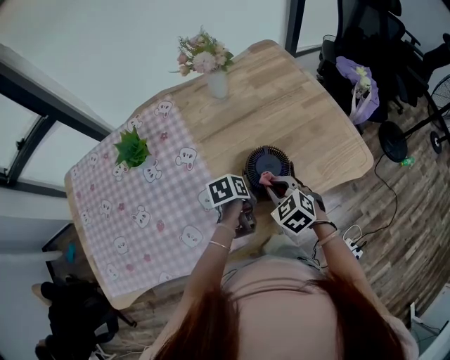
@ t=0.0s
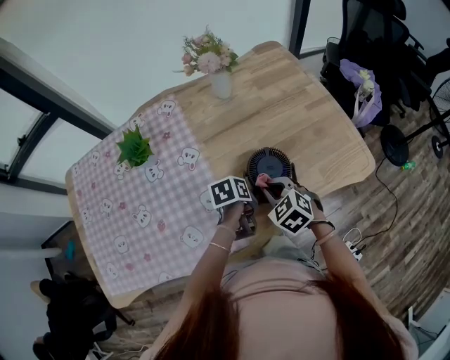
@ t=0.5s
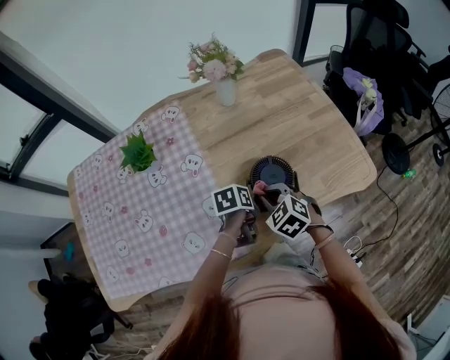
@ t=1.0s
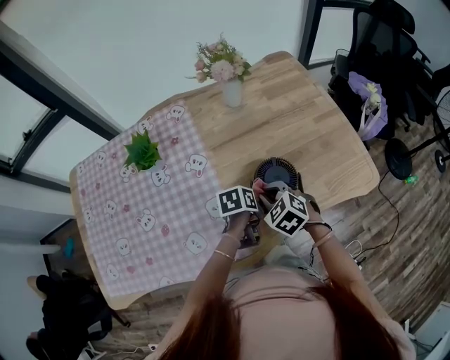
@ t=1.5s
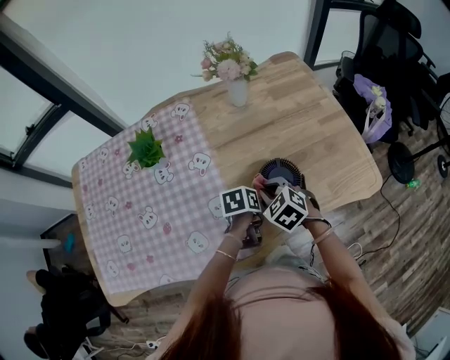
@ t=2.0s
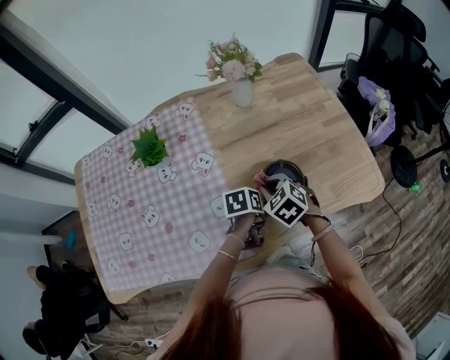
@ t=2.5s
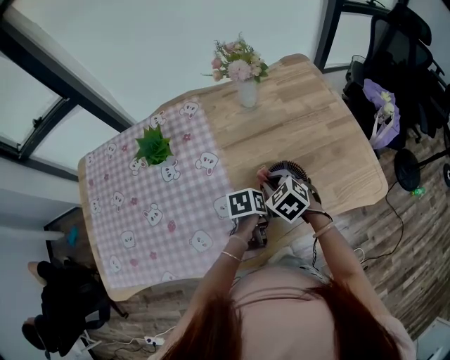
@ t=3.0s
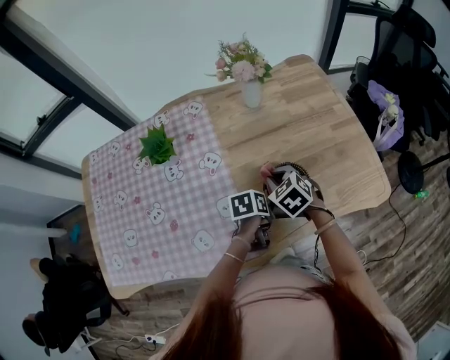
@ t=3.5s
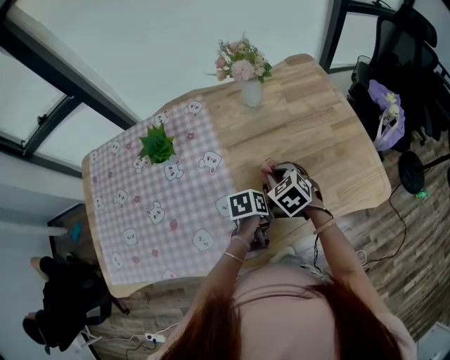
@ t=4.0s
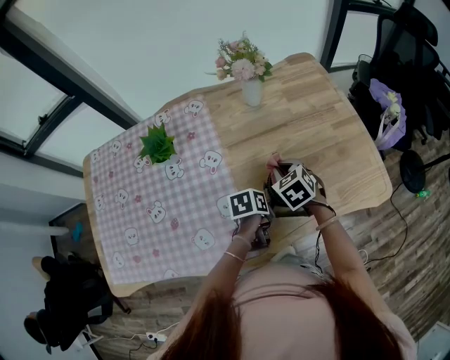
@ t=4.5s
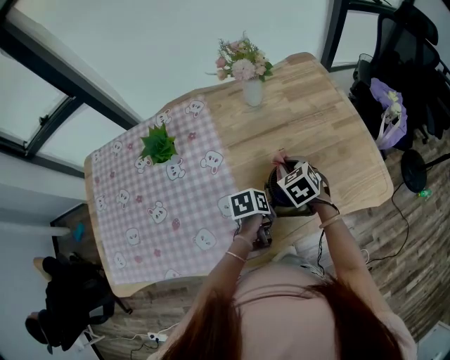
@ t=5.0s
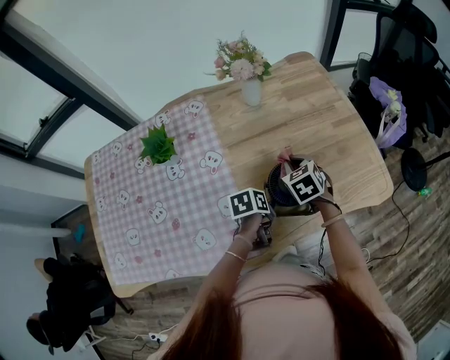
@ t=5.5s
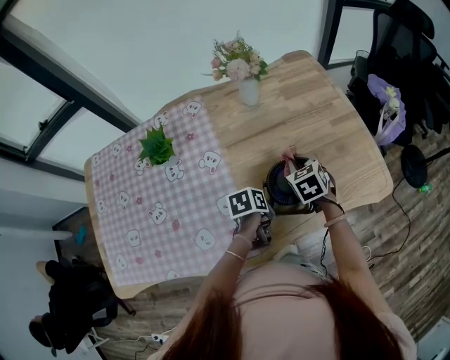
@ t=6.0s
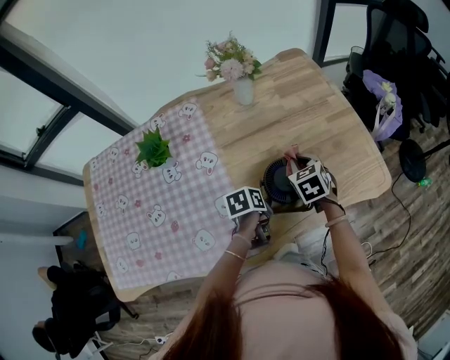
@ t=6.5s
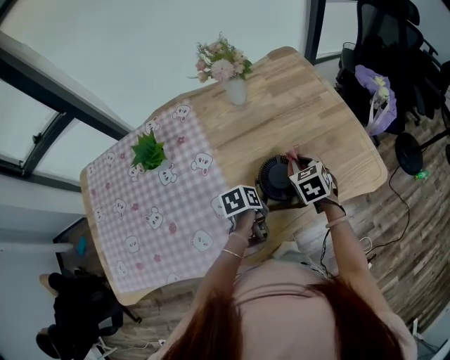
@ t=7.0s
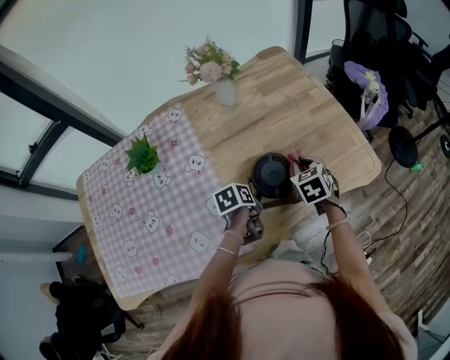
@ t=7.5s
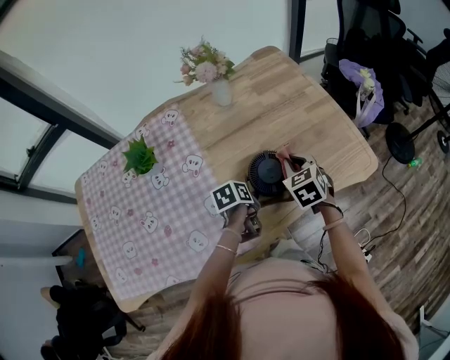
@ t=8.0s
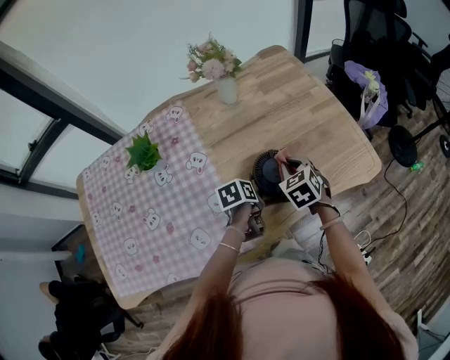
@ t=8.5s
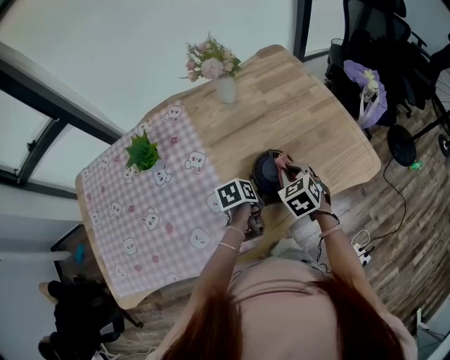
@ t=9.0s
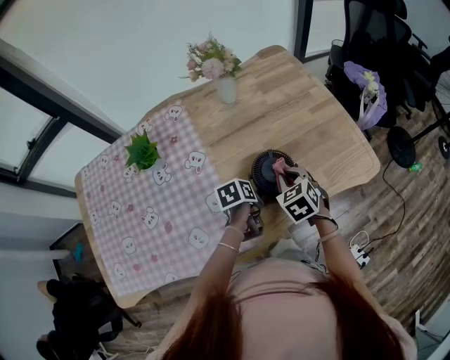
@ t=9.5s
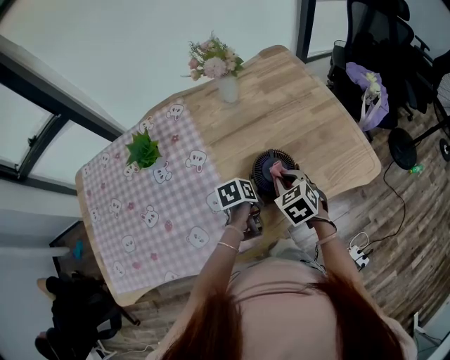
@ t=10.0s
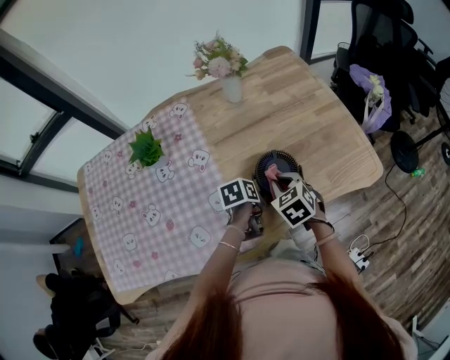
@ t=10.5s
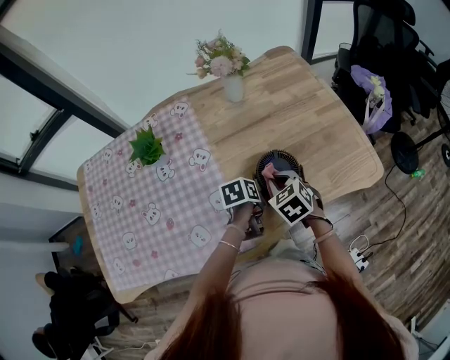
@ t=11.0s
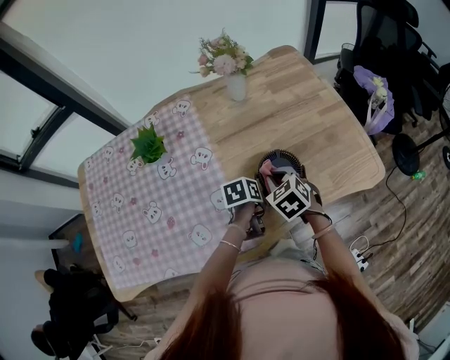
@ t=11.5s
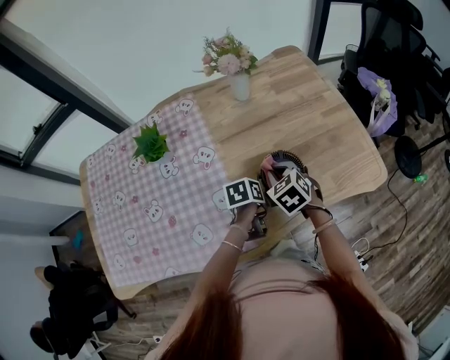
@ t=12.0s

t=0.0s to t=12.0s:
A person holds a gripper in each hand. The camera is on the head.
t=0.0s to t=2.0s: The right gripper goes roughly 5 cm to the left.
t=2.0s to t=4.0s: The right gripper shifts about 5 cm forward.
t=4.0s to t=6.0s: The right gripper is displaced to the right by approximately 5 cm.
t=6.0s to t=8.0s: The right gripper heads to the right, covering approximately 5 cm.
t=8.0s to t=10.0s: The right gripper travels backward by about 5 cm.
t=10.0s to t=12.0s: The right gripper is displaced to the left by about 5 cm.

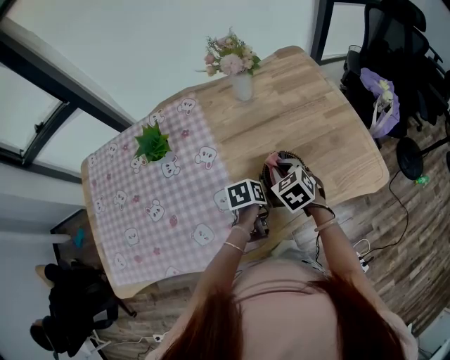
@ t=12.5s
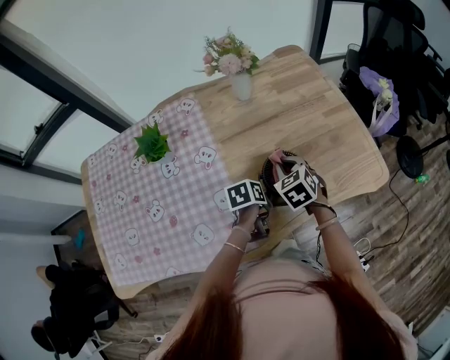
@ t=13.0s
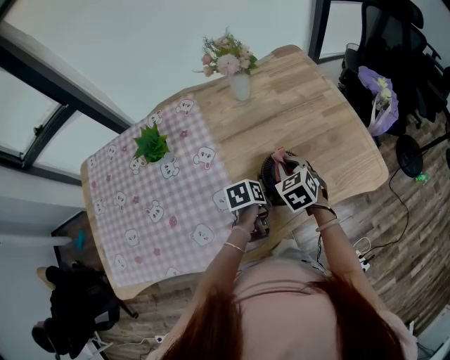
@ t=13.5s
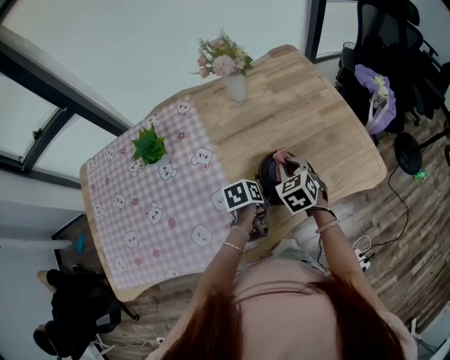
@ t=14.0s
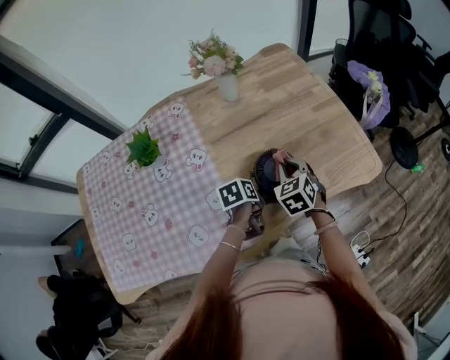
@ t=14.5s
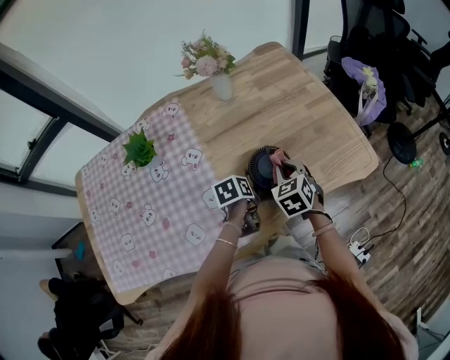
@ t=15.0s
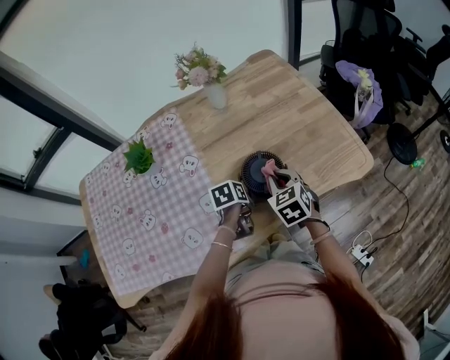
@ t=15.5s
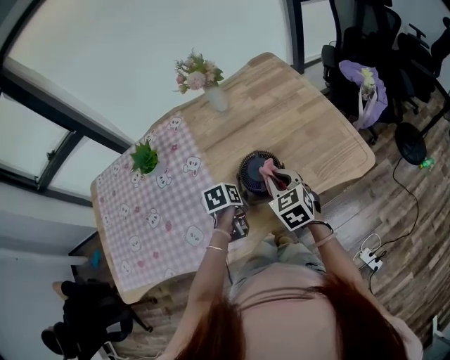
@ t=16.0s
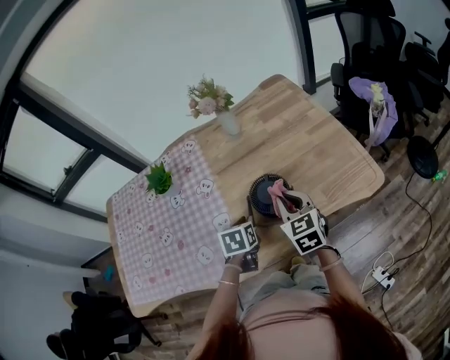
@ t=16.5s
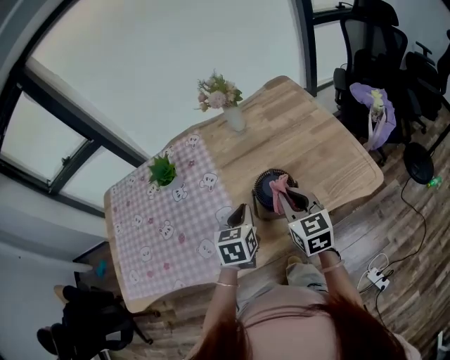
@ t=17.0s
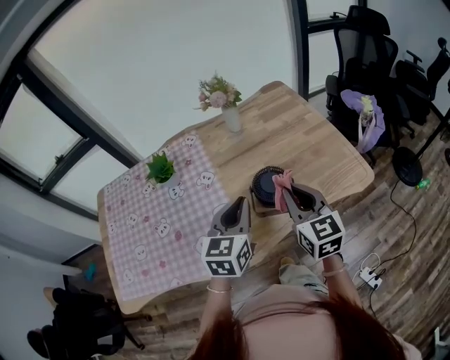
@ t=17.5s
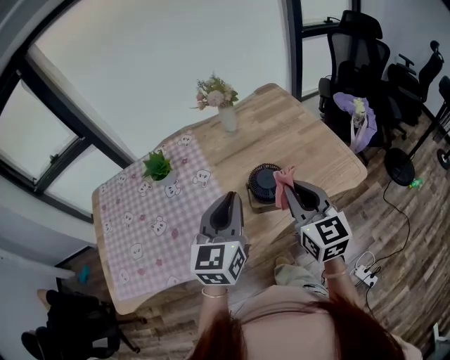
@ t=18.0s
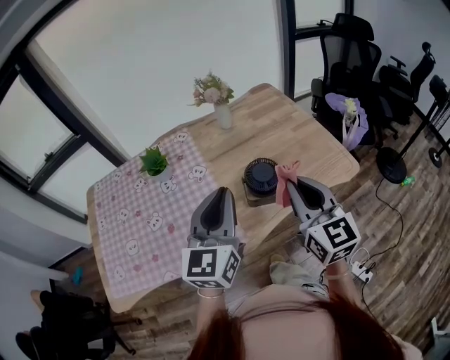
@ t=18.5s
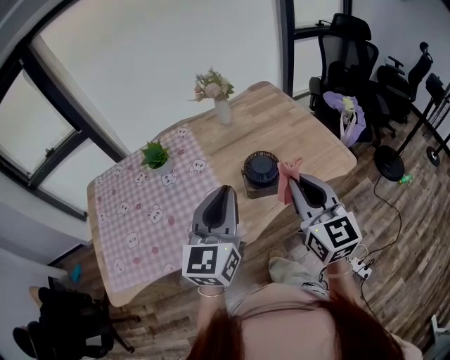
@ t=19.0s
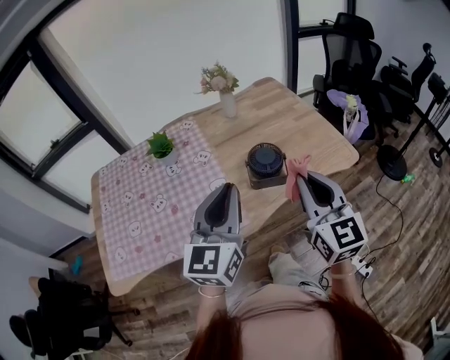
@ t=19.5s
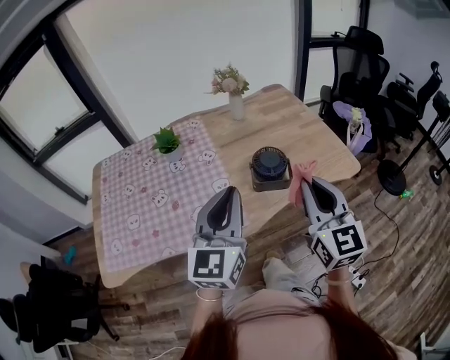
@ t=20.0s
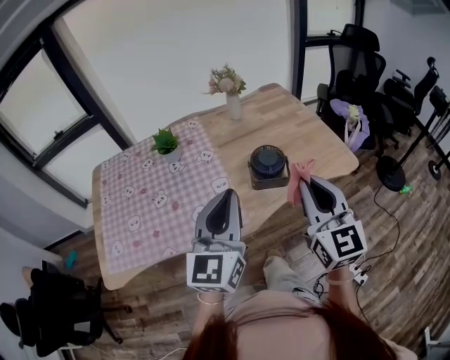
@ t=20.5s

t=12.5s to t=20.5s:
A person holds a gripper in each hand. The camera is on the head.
t=12.5s to t=14.5s: The right gripper goes about 5 cm to the right.
t=14.5s to t=16.5s: Both grippers travel together upward, some 5 cm. The left gripper swivels some 30 degrees, while the right gripper rotates some 30 degrees.
t=16.5s to t=18.5s: The right gripper shifts approximately 25 cm upward and backward, and rotates roughly 20 degrees, while the left gripper shifts approximately 30 cm upward, and points its fingers some 50 degrees further upward.
t=18.5s to t=20.5s: Both grippers move backward, roughly 10 cm.

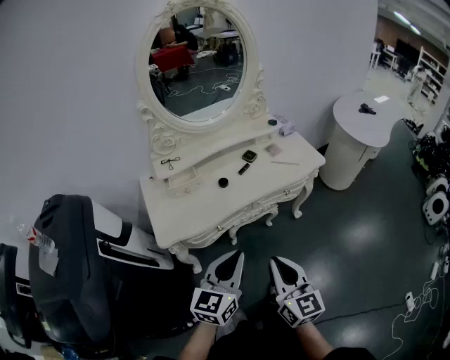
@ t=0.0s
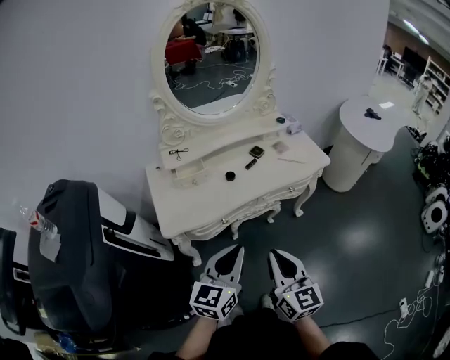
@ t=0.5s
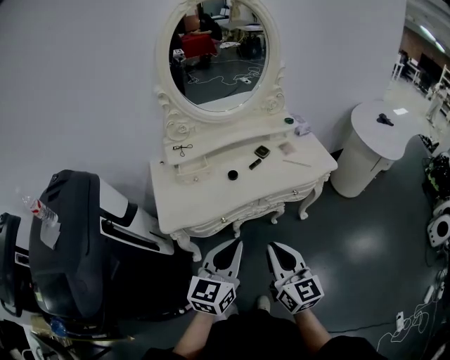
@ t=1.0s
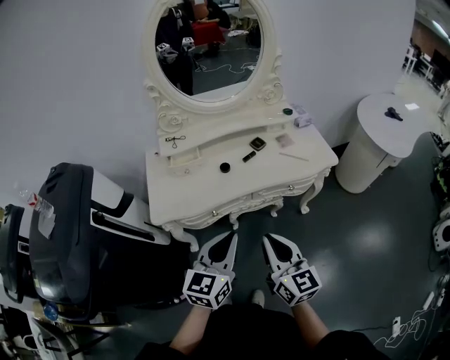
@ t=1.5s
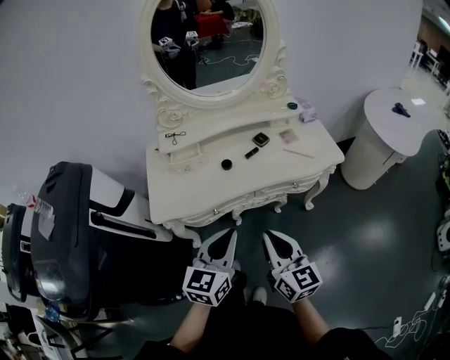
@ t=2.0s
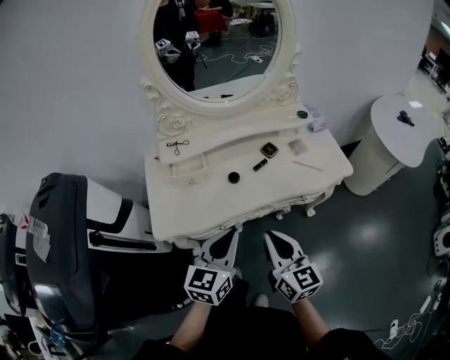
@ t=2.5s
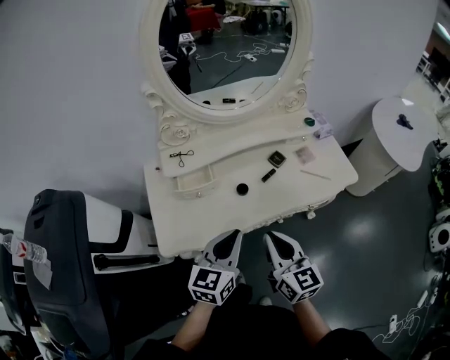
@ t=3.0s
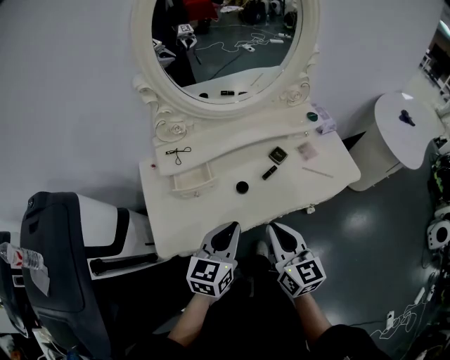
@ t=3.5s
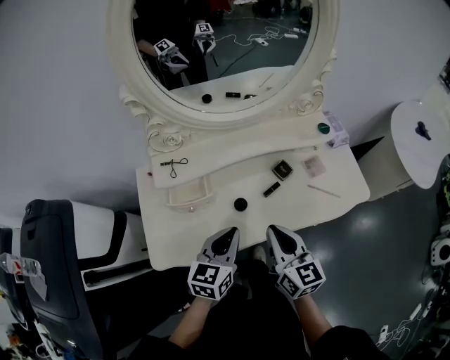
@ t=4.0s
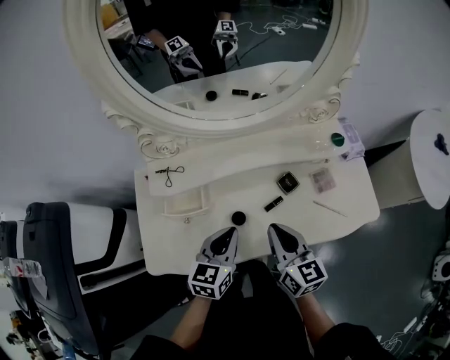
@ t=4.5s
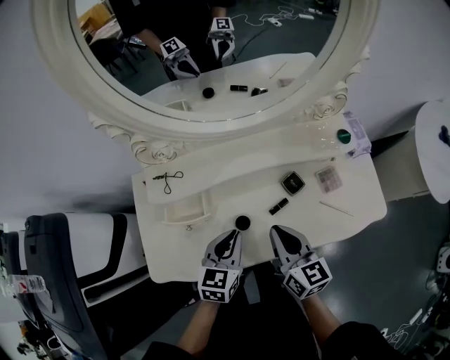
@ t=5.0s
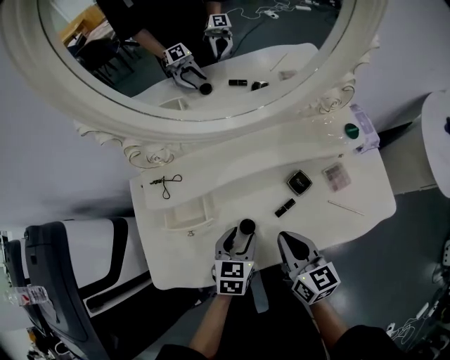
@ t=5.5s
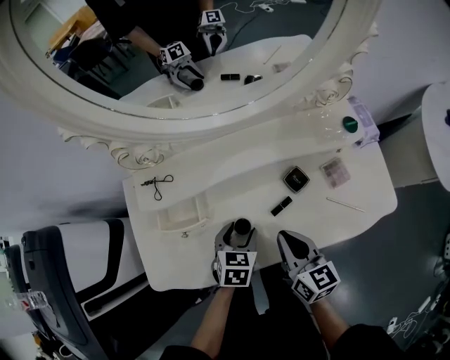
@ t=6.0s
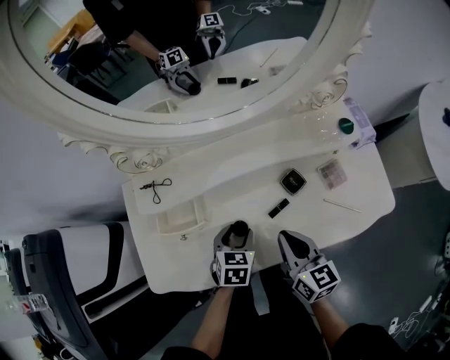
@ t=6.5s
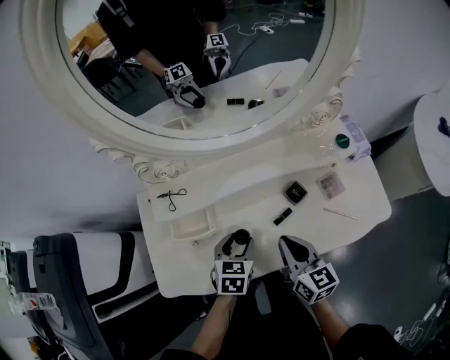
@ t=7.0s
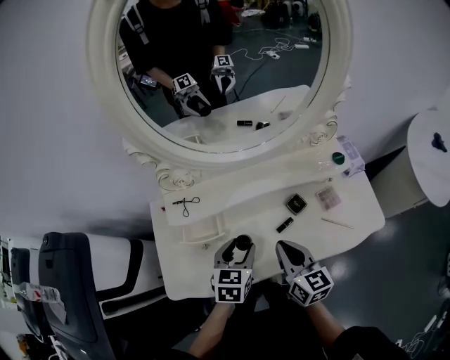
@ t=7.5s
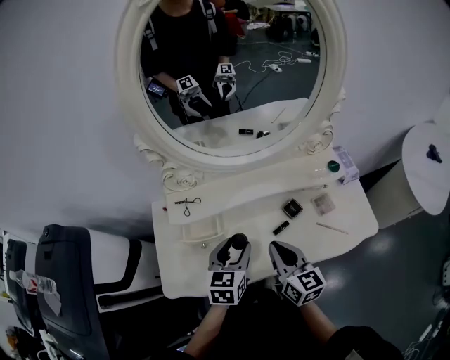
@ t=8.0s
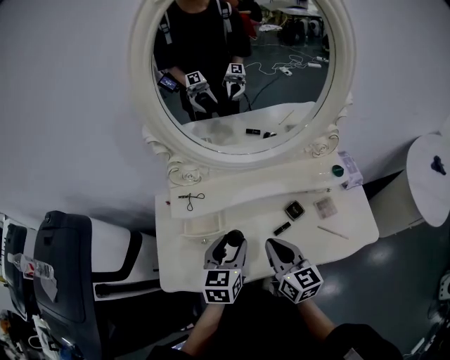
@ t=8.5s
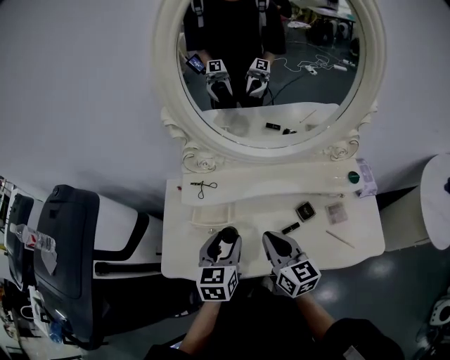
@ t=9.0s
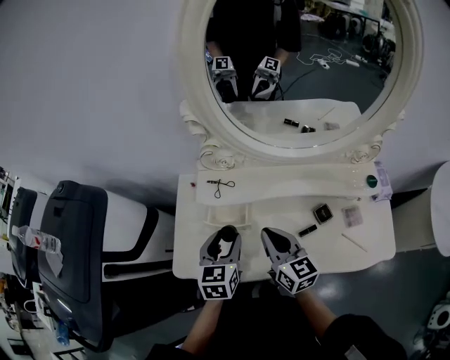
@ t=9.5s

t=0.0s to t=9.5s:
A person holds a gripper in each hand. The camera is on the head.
t=0.0s to t=2.0s: The left gripper heads forward, covering about 5 cm. The right gripper shifts about 10 cm forward and to the right.
t=2.0s to t=4.0s: The two grippers go approximately 25 cm forward.
t=4.0s to t=5.5s: The right gripper shifts roughly 15 cm forward and downward, while the left gripper is displaced downward and forward by about 15 cm, swivels some 20 degrees, and opens up.
t=5.5s to t=7.5s: The right gripper moves upward, about 5 cm; the left gripper shifts roughly 10 cm upward.
t=7.5s to t=9.5s: The right gripper moves to the left and forward, some 15 cm, while the left gripper shifts about 10 cm to the left, and rotates roughly 20 degrees.
